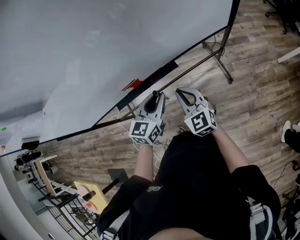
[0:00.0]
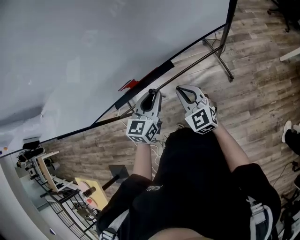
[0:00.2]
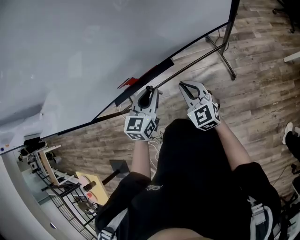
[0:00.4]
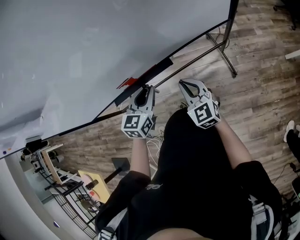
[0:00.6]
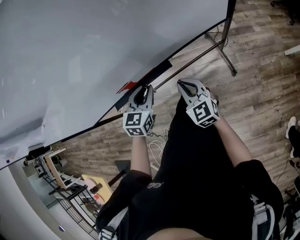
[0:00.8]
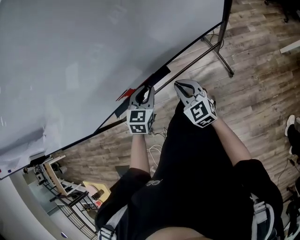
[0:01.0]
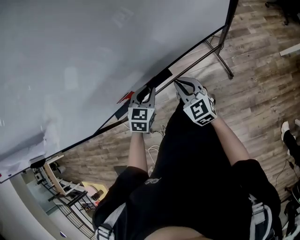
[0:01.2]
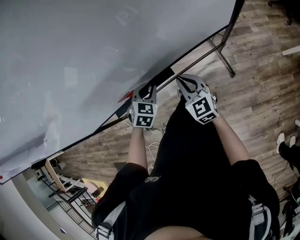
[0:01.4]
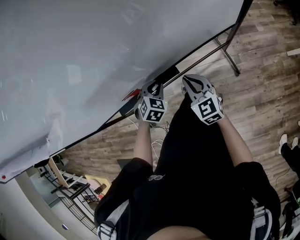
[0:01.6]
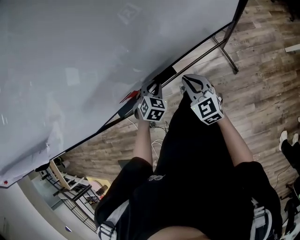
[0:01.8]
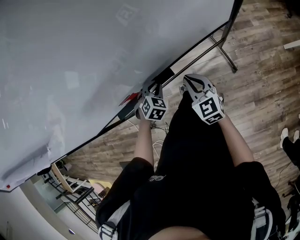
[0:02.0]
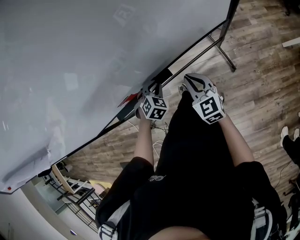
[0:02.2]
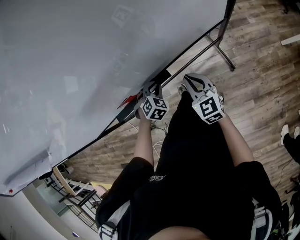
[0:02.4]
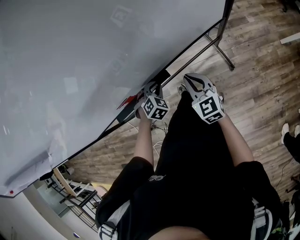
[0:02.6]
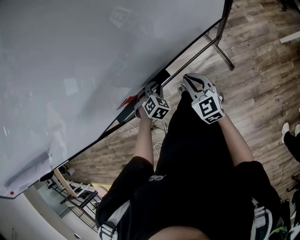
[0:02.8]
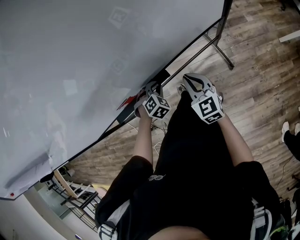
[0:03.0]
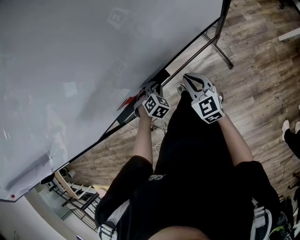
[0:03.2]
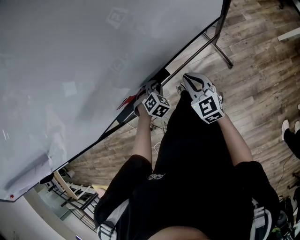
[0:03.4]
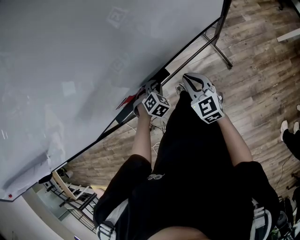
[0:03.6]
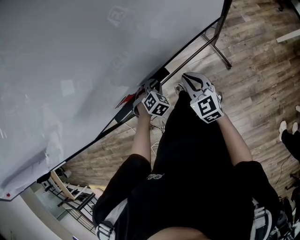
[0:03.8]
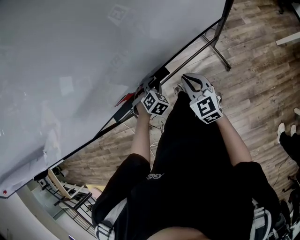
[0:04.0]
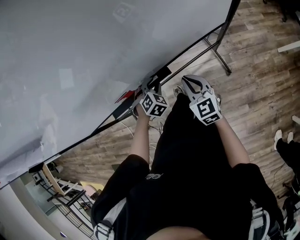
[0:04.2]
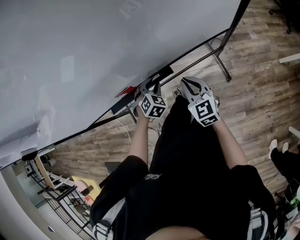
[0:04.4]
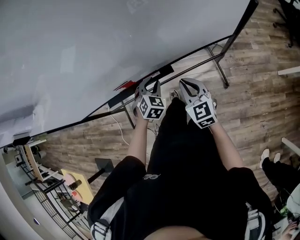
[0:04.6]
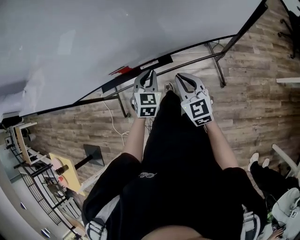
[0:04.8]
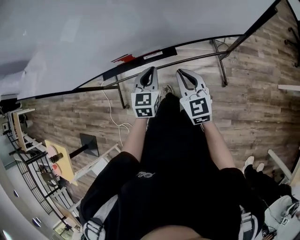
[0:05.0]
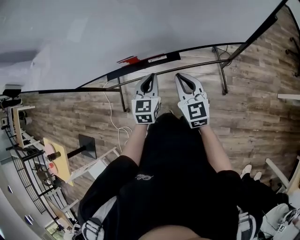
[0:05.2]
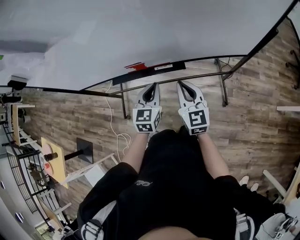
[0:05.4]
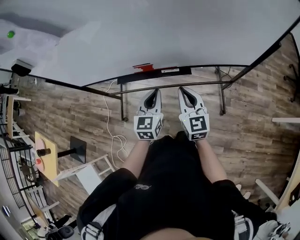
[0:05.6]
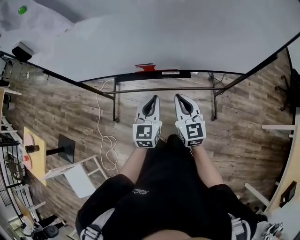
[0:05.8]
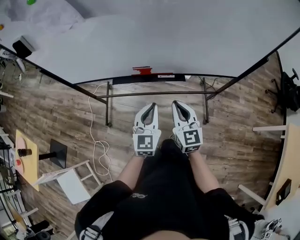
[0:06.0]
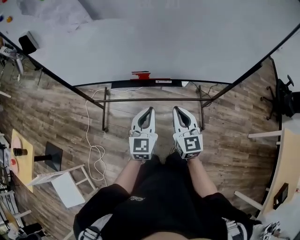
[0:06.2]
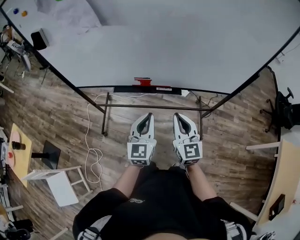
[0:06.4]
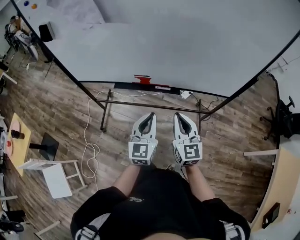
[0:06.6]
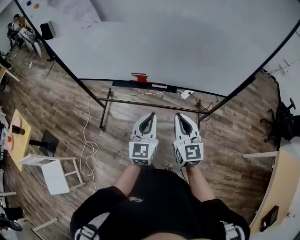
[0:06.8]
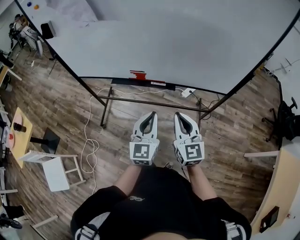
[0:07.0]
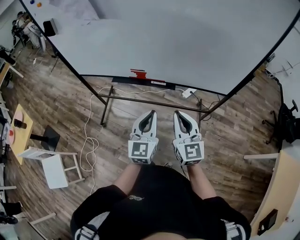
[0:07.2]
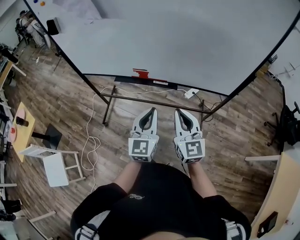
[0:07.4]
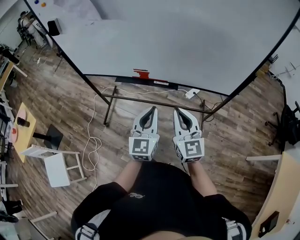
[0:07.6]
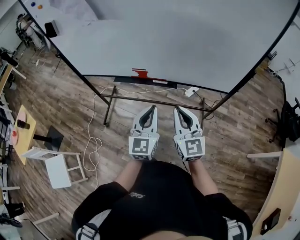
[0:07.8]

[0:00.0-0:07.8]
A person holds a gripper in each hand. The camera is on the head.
0:00.0 to 0:01.6: The right gripper heads forward, to the right and downward, covering roughly 15 cm. Meanwhile the left gripper goes roughly 20 cm downward and forward, and tips its fingers downward by about 40 degrees.
0:01.6 to 0:03.2: The left gripper is displaced downward by roughly 5 cm.
0:03.2 to 0:04.6: The left gripper goes some 5 cm upward, and changes its angle by approximately 30 degrees, while the right gripper shifts by approximately 5 cm.
0:04.6 to 0:06.2: The grippers both shift backward, upward and to the left by some 25 cm. The left gripper tips its fingers upward by approximately 40 degrees, and closes its fingers.
0:06.2 to 0:07.8: The right gripper travels to the right, upward and backward by some 10 cm; the left gripper goes approximately 15 cm to the right, backward and upward.

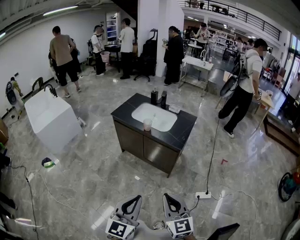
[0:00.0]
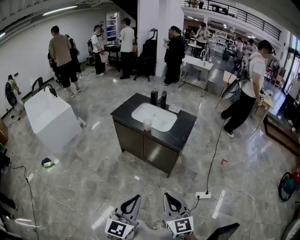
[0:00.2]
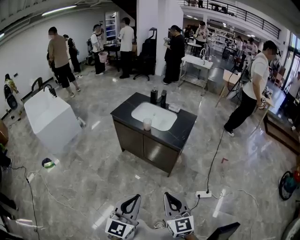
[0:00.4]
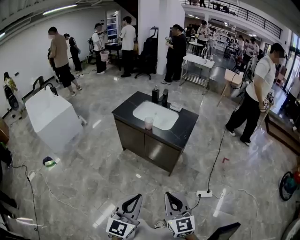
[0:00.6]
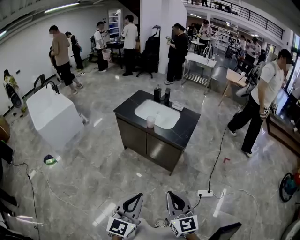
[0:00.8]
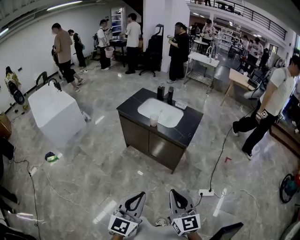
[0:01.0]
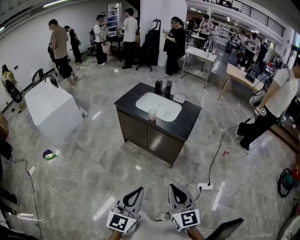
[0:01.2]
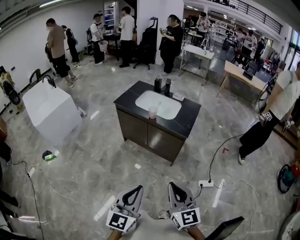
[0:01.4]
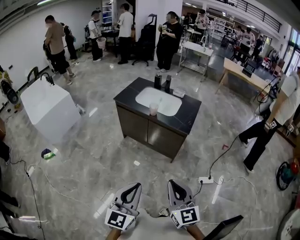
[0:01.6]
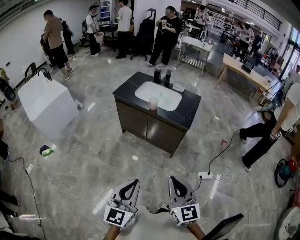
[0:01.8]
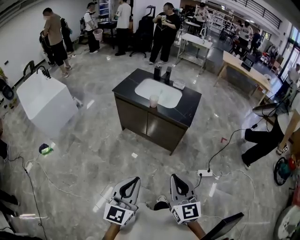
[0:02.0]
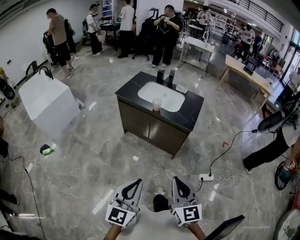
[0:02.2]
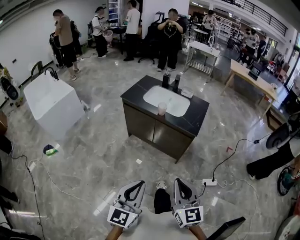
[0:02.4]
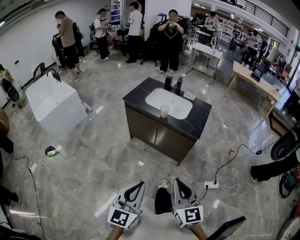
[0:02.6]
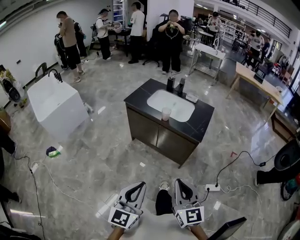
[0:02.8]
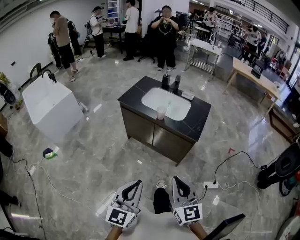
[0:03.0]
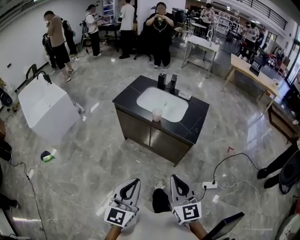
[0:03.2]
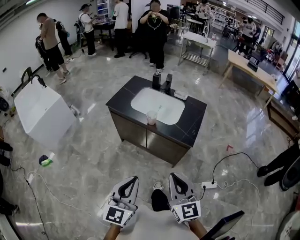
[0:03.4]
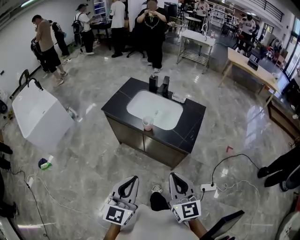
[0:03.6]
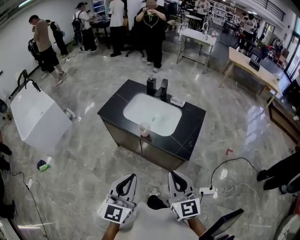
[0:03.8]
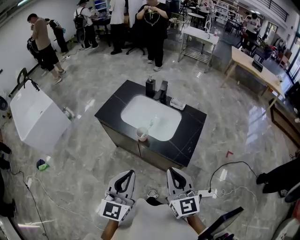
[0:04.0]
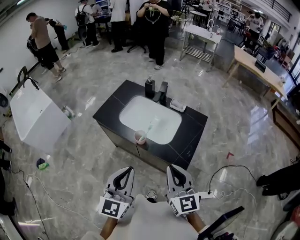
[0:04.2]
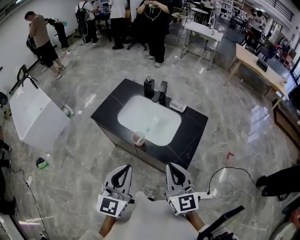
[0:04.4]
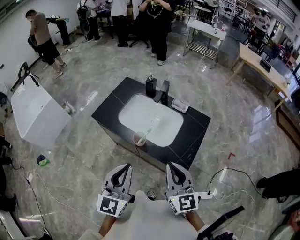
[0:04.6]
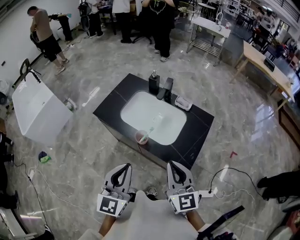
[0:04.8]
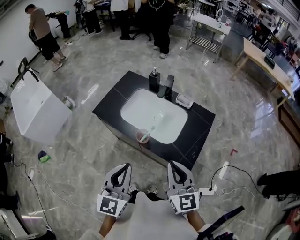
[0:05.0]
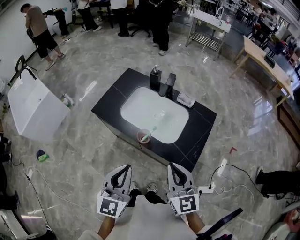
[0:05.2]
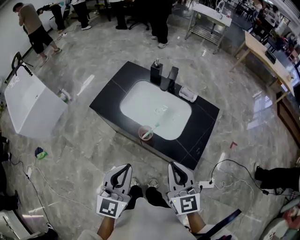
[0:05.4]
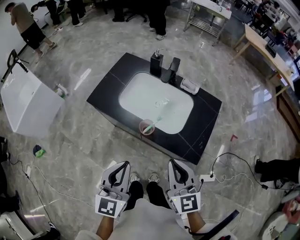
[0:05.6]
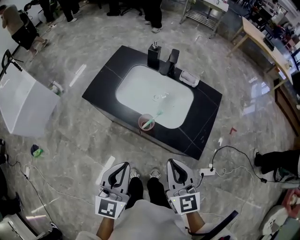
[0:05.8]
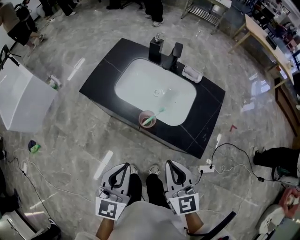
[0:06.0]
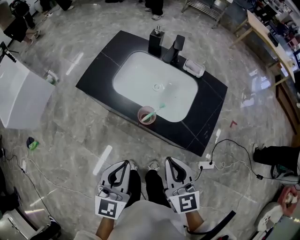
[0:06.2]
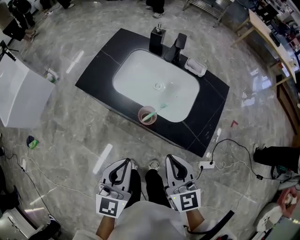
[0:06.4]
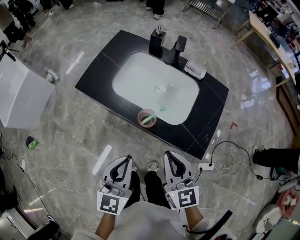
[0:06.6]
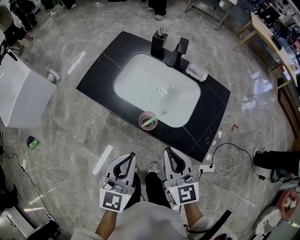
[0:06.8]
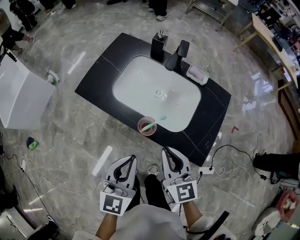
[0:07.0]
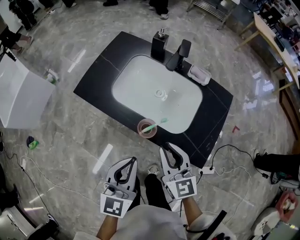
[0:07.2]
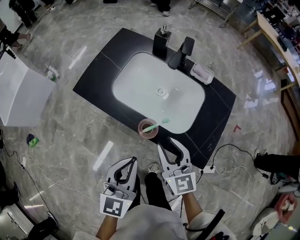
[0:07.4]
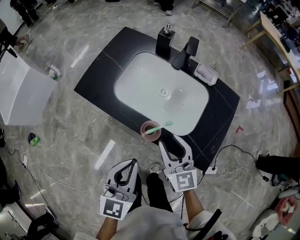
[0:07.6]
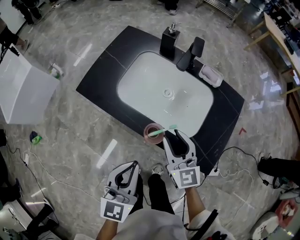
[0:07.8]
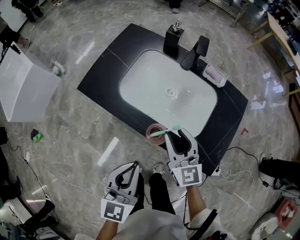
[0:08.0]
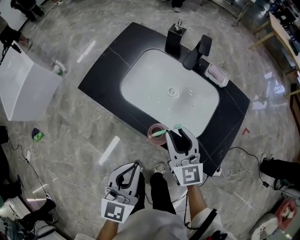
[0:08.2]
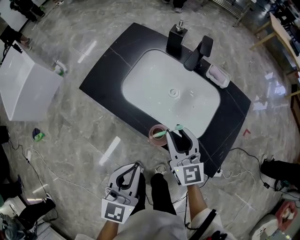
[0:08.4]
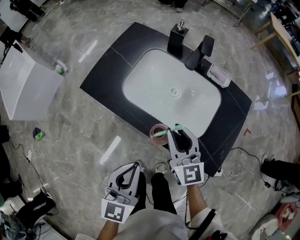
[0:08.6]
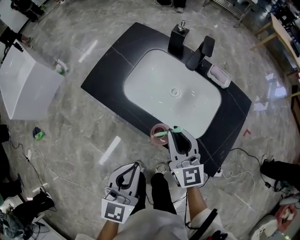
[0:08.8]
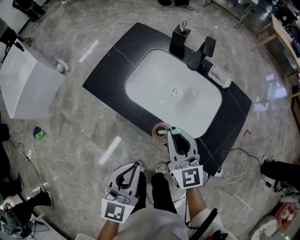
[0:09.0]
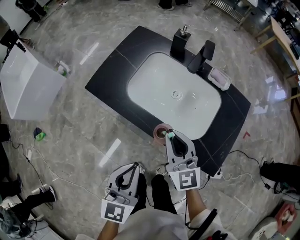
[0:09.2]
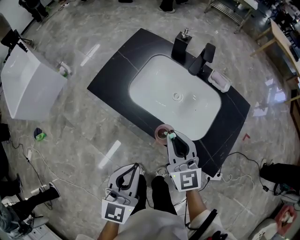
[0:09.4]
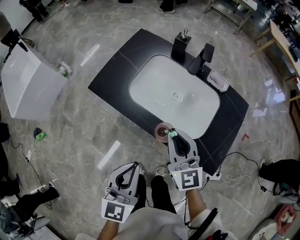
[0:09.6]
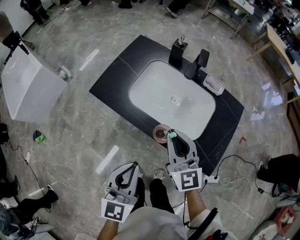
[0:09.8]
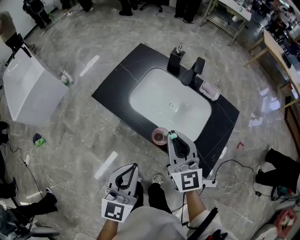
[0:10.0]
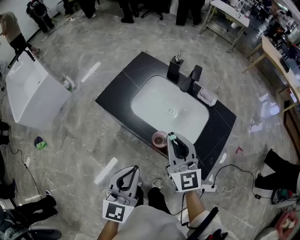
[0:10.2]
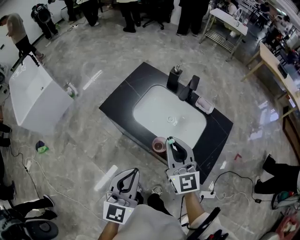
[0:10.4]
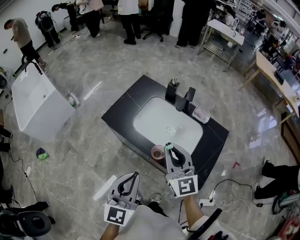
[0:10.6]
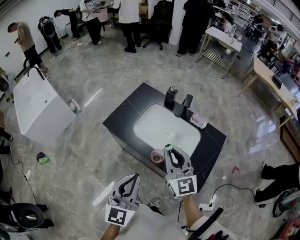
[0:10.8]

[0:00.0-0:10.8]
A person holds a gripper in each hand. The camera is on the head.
0:00.0 to 0:01.6: The left gripper shifts approximately 5 cm to the left.
0:01.6 to 0:03.0: Both grippers travel together forward, roughly 10 cm.
0:03.0 to 0:04.6: The grippers both shift forward by approximately 30 cm.
0:04.6 to 0:06.2: The grippers both shift downward and to the left by about 10 cm.
0:06.2 to 0:07.8: The right gripper goes approximately 15 cm forward and downward, and opens up; the left gripper goes some 5 cm forward.
0:07.8 to 0:09.2: The right gripper shifts by approximately 5 cm, and closes its fingers.
0:09.2 to 0:10.8: Both grippers move upward, some 15 cm.

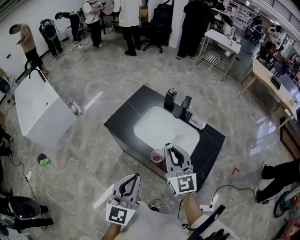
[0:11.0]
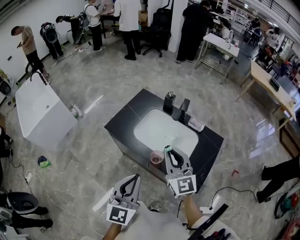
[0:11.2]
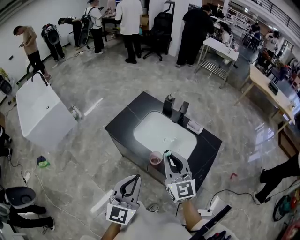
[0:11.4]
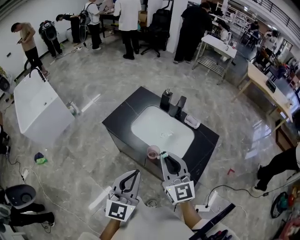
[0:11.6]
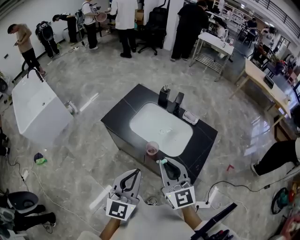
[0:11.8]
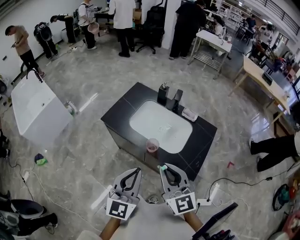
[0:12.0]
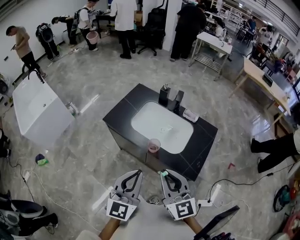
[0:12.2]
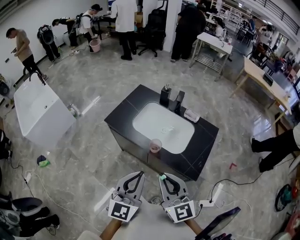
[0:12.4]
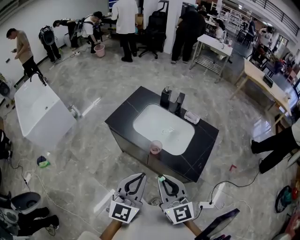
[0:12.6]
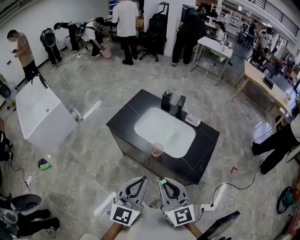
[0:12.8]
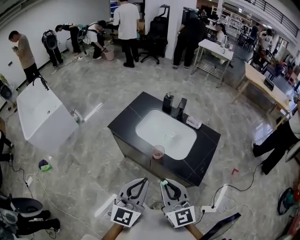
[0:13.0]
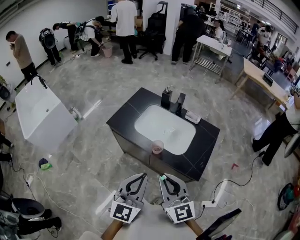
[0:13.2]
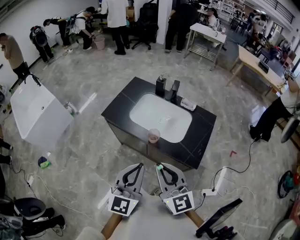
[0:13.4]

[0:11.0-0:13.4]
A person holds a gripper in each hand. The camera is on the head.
0:11.0 to 0:12.2: The left gripper goes some 5 cm backward, while the right gripper heads backward, covering some 15 cm.
0:12.2 to 0:13.4: The grippers make only small movements.

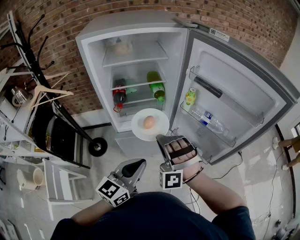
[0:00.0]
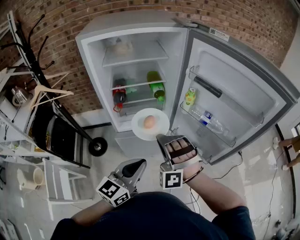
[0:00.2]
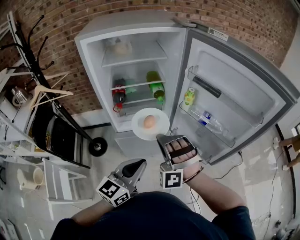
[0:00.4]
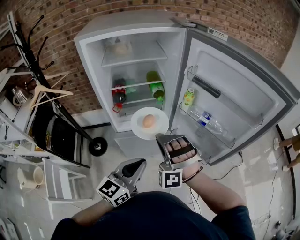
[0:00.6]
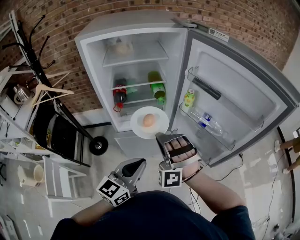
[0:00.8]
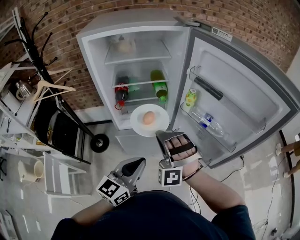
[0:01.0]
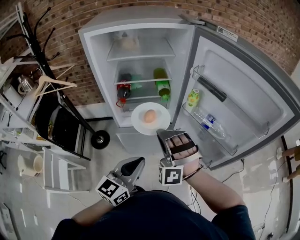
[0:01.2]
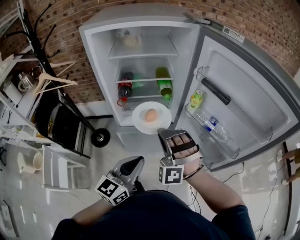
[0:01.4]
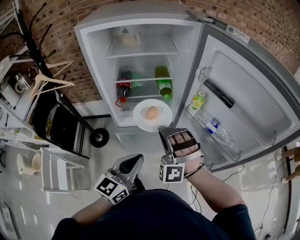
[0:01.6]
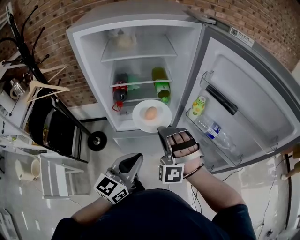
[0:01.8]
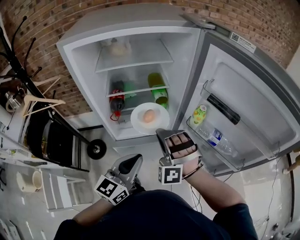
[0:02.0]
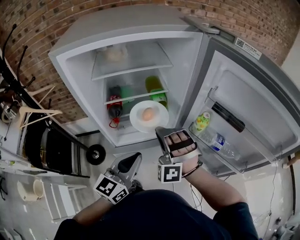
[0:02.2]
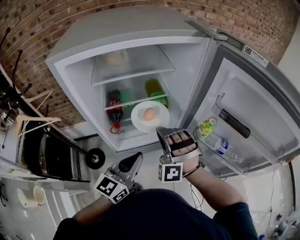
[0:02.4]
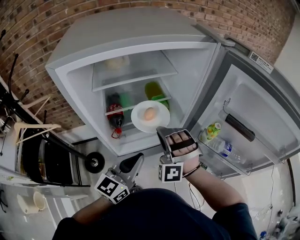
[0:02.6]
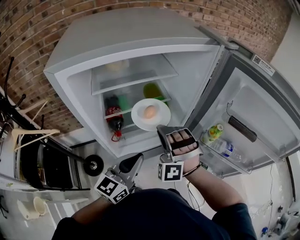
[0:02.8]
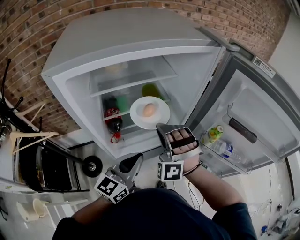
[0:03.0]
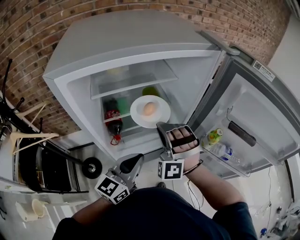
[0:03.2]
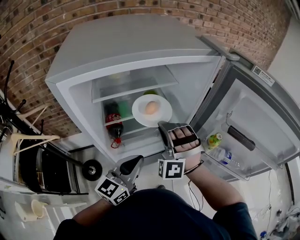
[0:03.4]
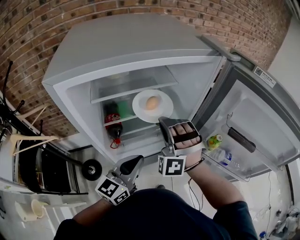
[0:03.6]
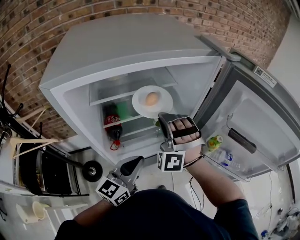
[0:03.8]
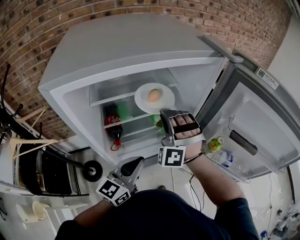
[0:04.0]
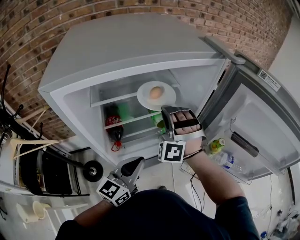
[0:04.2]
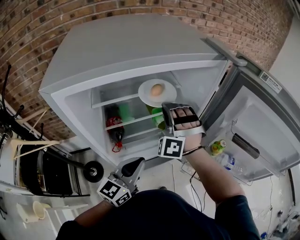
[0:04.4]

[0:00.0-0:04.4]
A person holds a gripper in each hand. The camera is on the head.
0:01.4 to 0:03.0: The left gripper moves about 25 cm.
